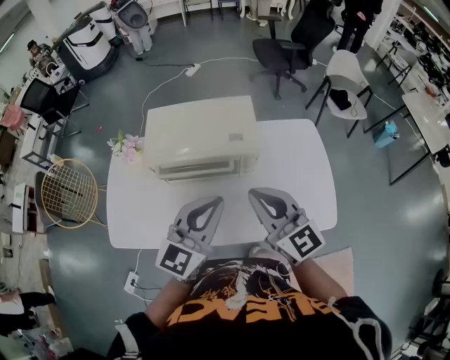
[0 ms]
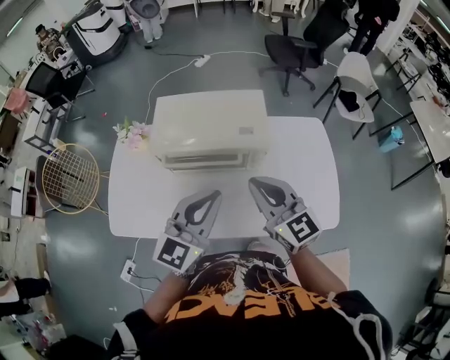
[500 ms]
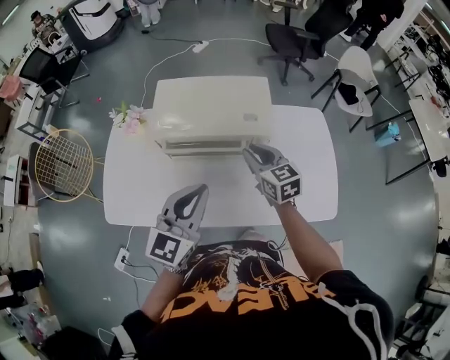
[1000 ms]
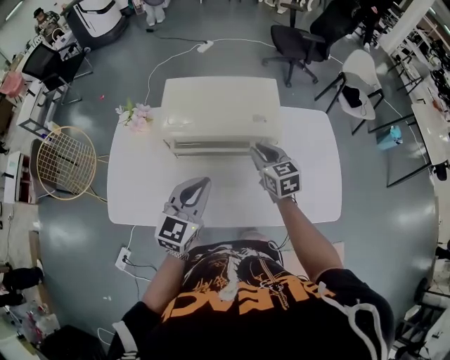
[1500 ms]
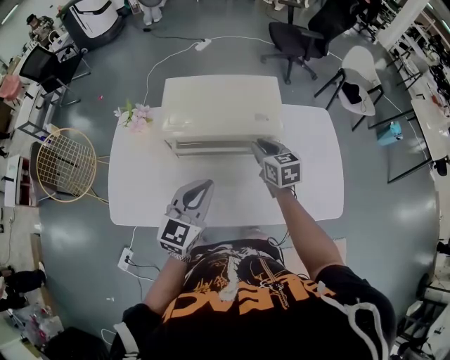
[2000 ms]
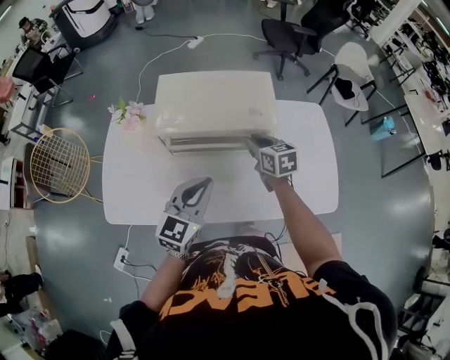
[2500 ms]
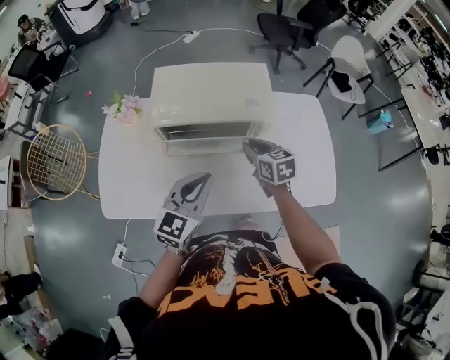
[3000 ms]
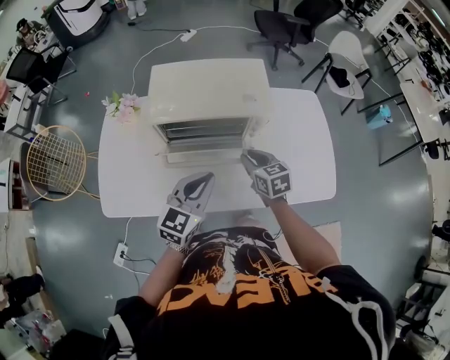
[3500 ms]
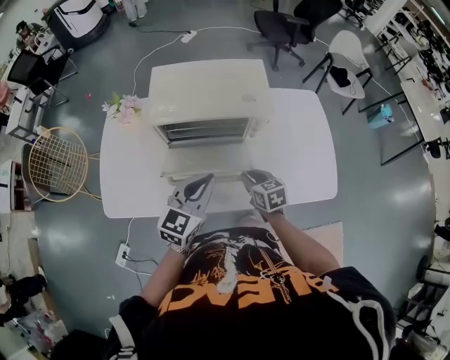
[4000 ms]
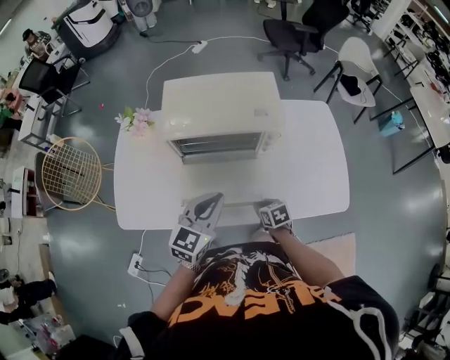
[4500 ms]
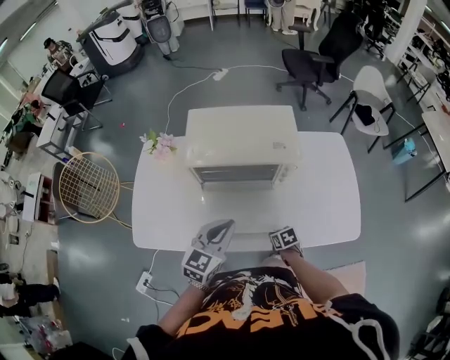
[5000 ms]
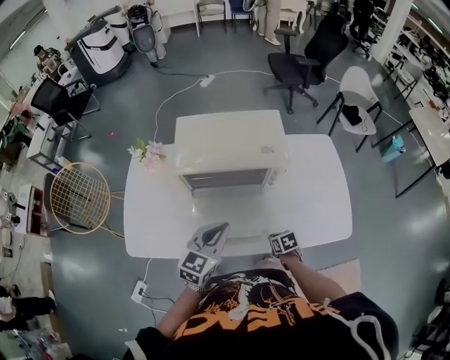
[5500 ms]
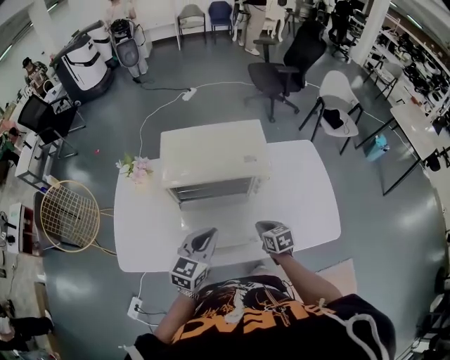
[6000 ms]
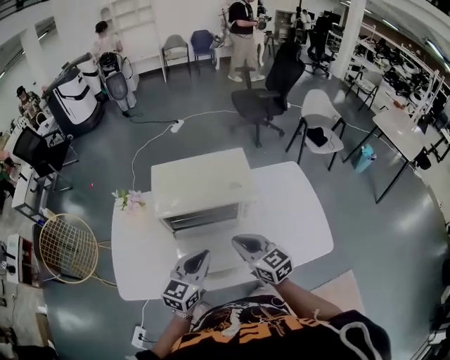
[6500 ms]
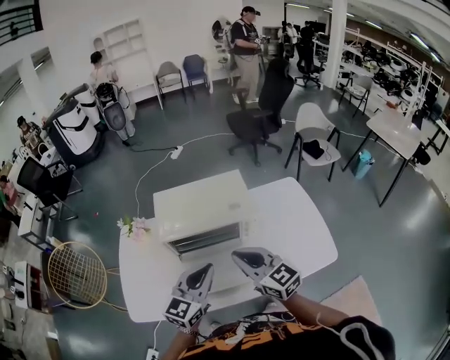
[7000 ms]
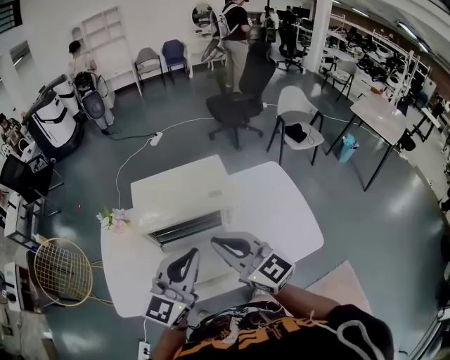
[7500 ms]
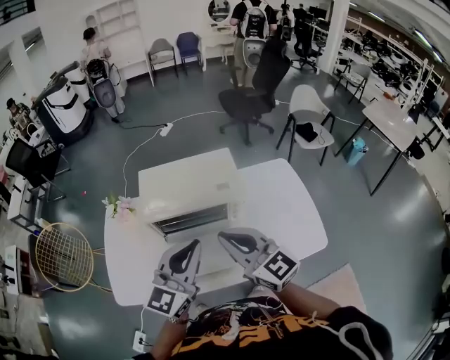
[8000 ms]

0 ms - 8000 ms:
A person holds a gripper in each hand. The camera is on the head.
0 ms - 2000 ms: The left gripper moves downward and to the left, approximately 15 cm. The right gripper heads downward and forward, covering roughly 25 cm, and turns by about 30 degrees.
2000 ms - 4000 ms: The right gripper is displaced backward and downward by approximately 20 cm.
4000 ms - 6000 ms: The right gripper travels downward and back again, approximately 15 cm each way.
6000 ms - 8000 ms: The right gripper shifts roughly 35 cm upward, and tilts its fingers roughly 40 degrees upward, while the left gripper heads upward, covering roughly 20 cm, and turns by some 20 degrees.

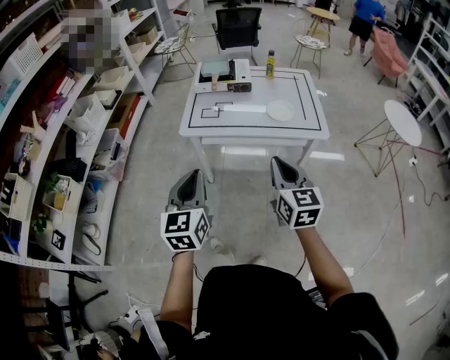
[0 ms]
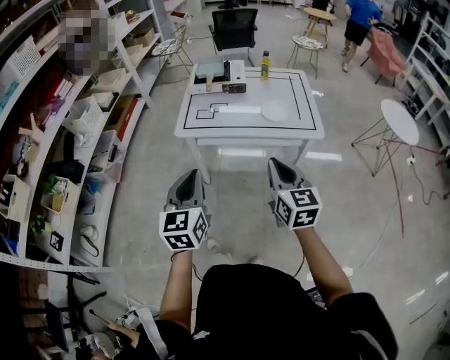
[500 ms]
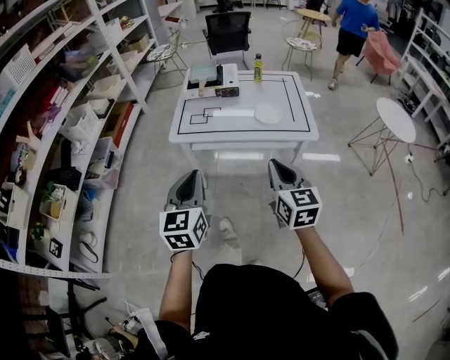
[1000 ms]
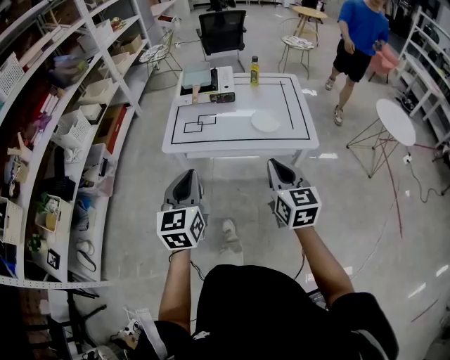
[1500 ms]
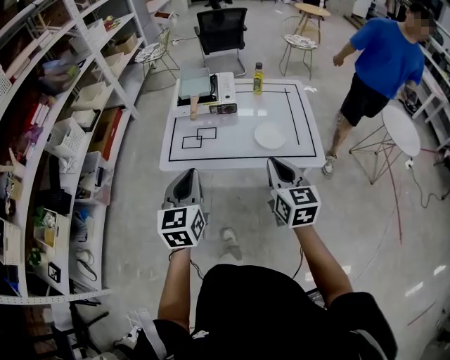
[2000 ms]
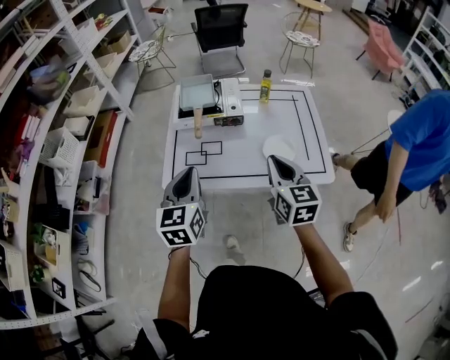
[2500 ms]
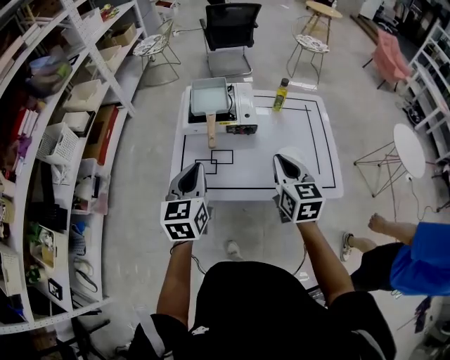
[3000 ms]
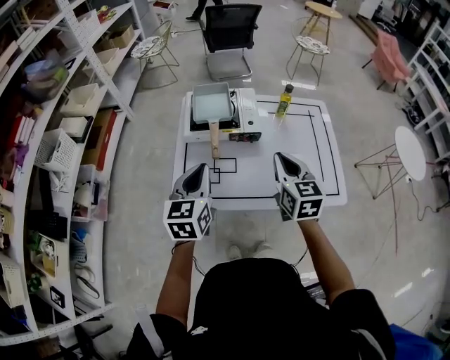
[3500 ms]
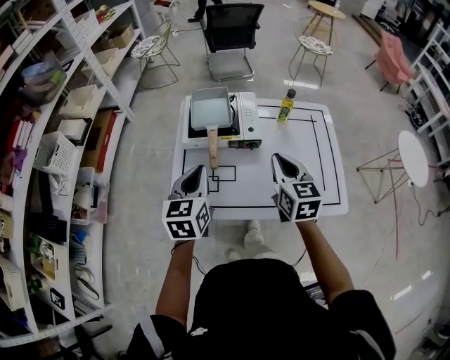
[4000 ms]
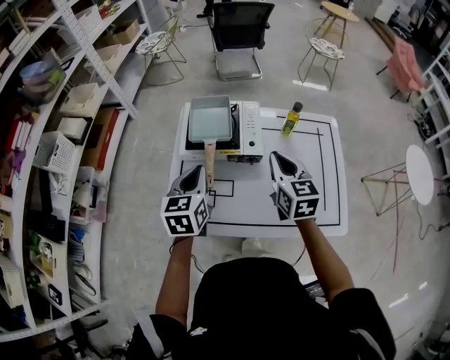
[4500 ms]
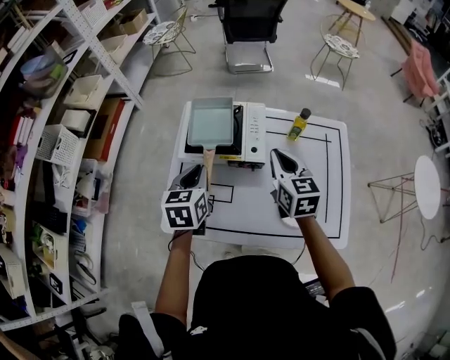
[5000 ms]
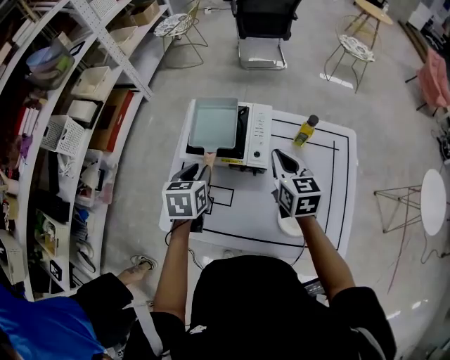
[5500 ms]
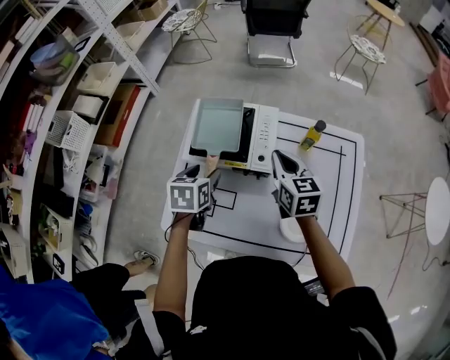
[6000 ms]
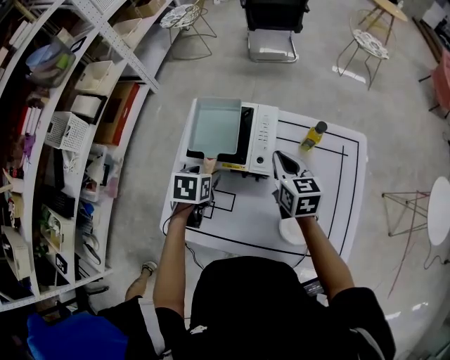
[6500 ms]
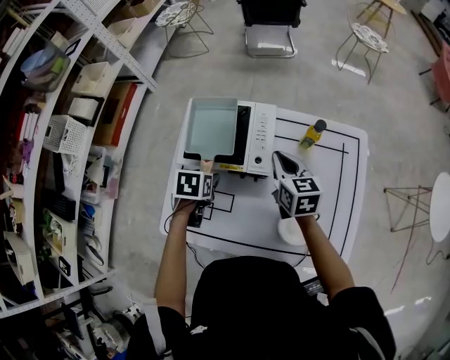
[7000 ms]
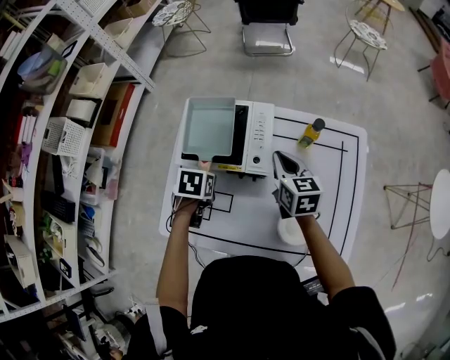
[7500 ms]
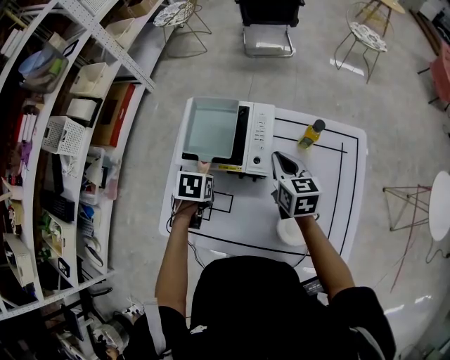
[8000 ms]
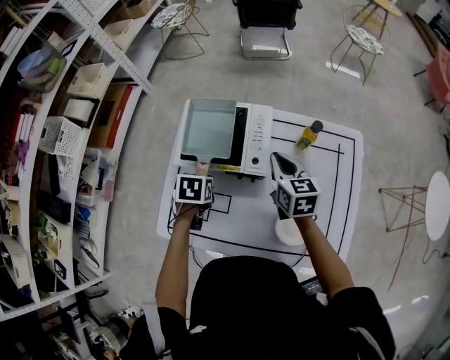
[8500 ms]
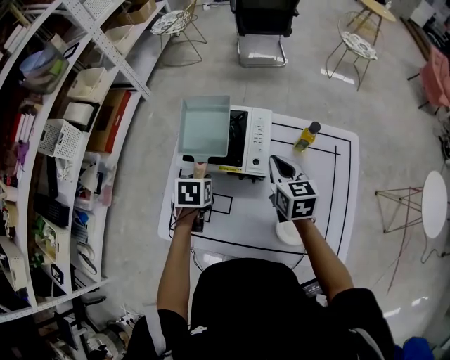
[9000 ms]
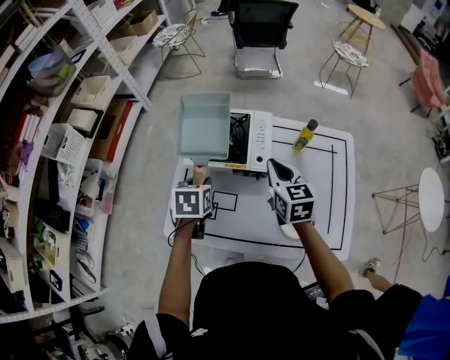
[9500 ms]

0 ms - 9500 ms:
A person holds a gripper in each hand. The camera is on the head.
0 ms - 2000 ms: The grippers both shift forward by some 20 cm.
2000 ms - 4000 ms: The grippers both shift forward by about 25 cm.
4000 ms - 5500 ms: The right gripper moves forward, about 20 cm. Meanwhile the left gripper travels forward and downward by about 15 cm, and turns by roughly 30 degrees.
5500 ms - 7500 ms: The right gripper moves downward, some 5 cm; the left gripper moves downward, approximately 10 cm, turns by about 30 degrees, and opens and closes again.
7500 ms - 9500 ms: The right gripper goes about 10 cm backward and upward; the left gripper is displaced upward by roughly 10 cm.

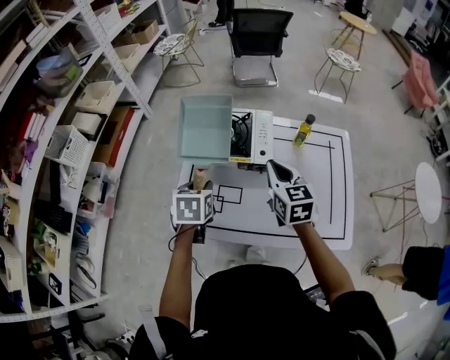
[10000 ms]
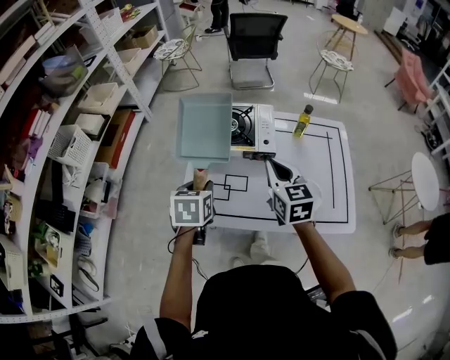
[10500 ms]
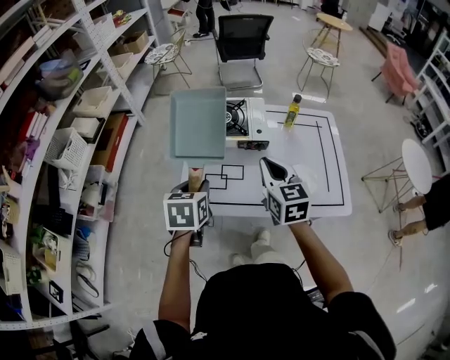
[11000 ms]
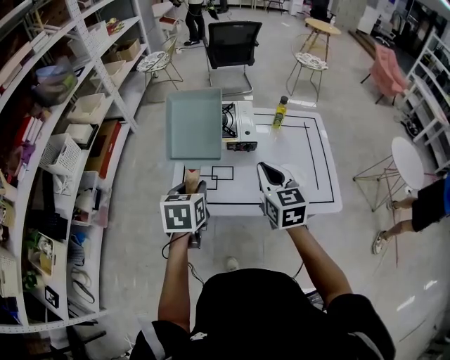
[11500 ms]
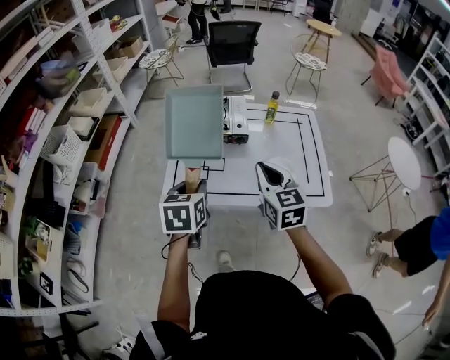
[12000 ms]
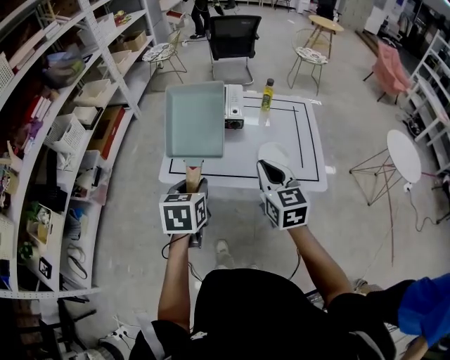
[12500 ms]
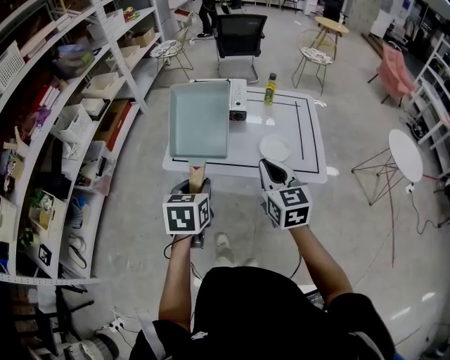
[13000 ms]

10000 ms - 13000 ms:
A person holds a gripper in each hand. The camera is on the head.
10000 ms - 11500 ms: The left gripper heads backward and upward, covering approximately 15 cm. The right gripper moves backward, approximately 15 cm.
11500 ms - 13000 ms: The right gripper is displaced backward by about 20 cm. Meanwhile the left gripper travels backward and to the right by roughly 20 cm.

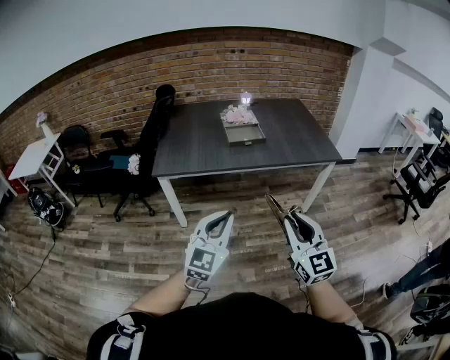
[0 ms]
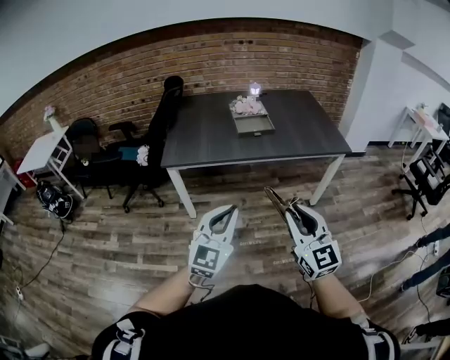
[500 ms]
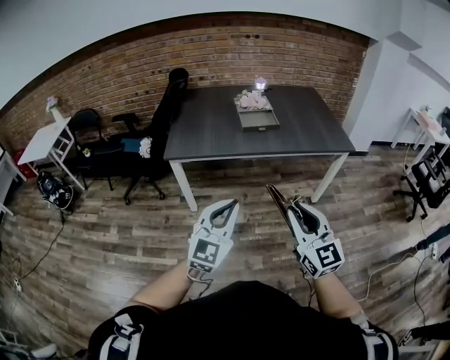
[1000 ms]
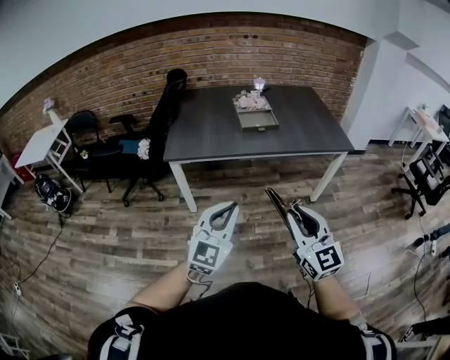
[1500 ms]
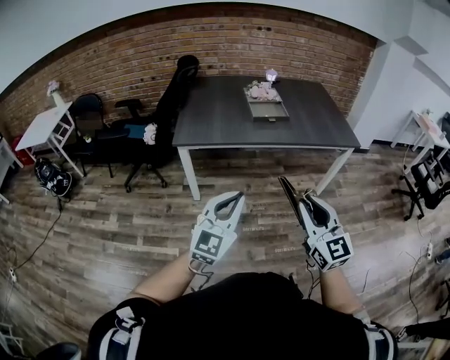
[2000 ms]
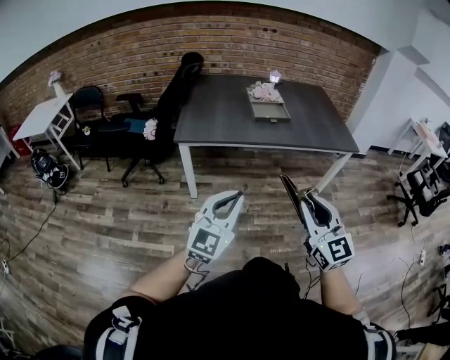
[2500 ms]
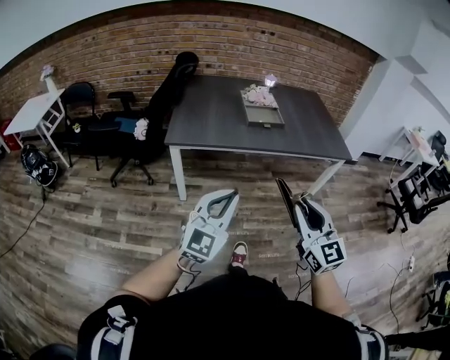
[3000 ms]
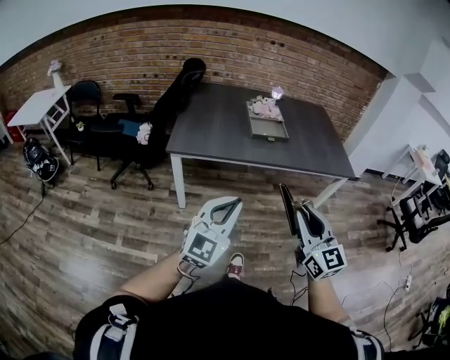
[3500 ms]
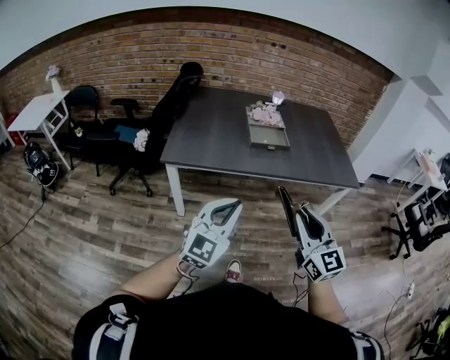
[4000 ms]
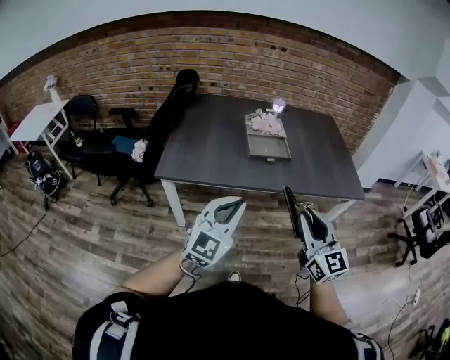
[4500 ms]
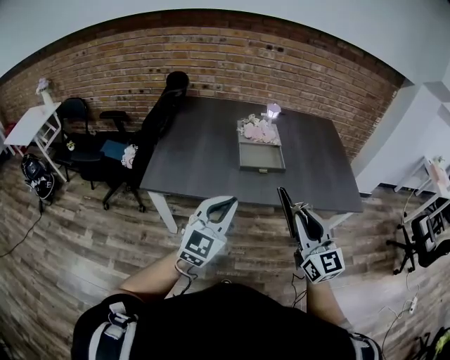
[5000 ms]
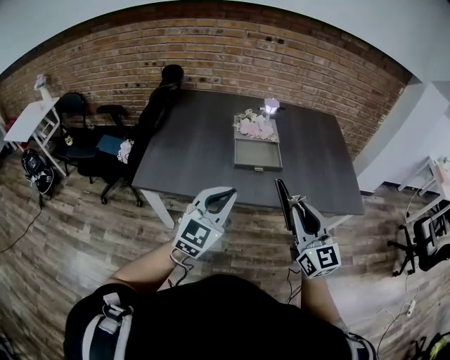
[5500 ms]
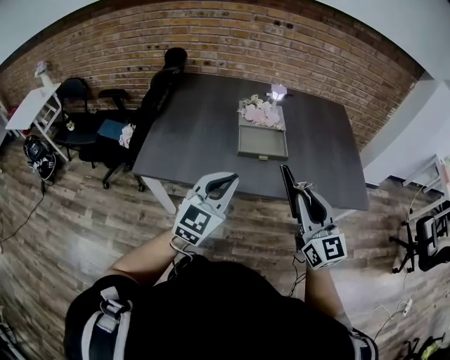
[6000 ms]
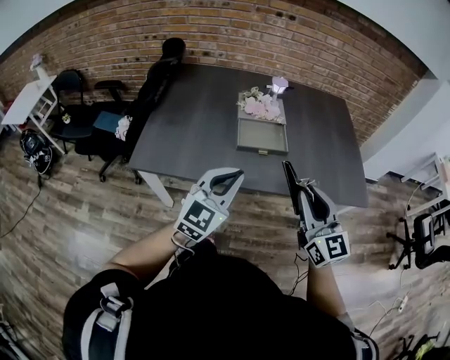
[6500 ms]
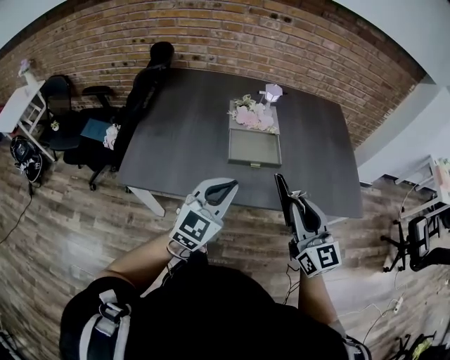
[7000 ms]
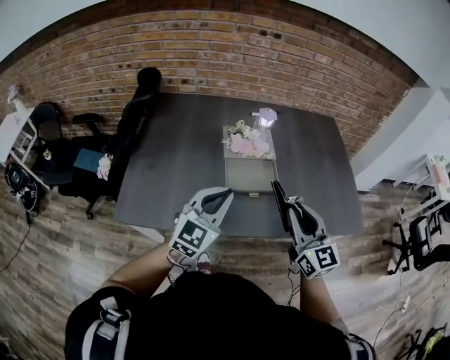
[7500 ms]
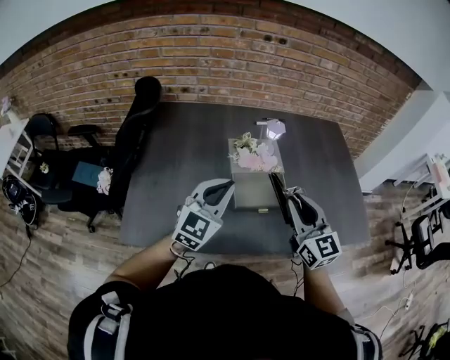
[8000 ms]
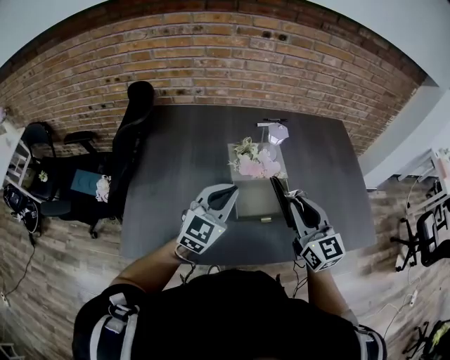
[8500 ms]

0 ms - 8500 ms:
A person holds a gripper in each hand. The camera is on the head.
0 ms - 2000 ms: The grippers both shift to the left by about 5 cm.
2000 ms - 4000 ms: The grippers both shift forward by roughly 15 cm.
4000 ms - 6500 ms: Both grippers travel together forward, about 30 cm.
6500 ms - 8500 ms: Both grippers travel together forward, approximately 25 cm.
